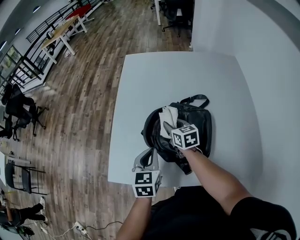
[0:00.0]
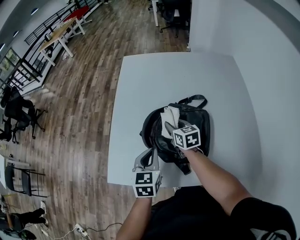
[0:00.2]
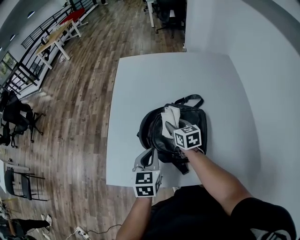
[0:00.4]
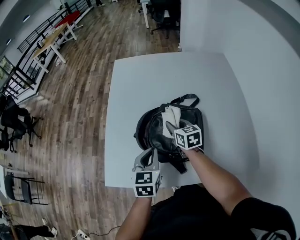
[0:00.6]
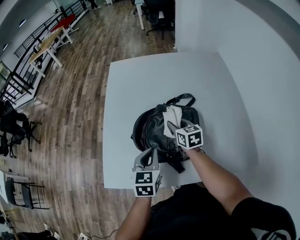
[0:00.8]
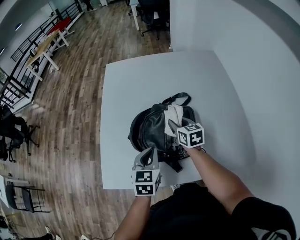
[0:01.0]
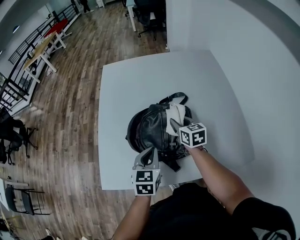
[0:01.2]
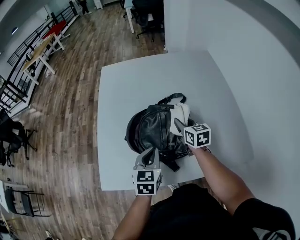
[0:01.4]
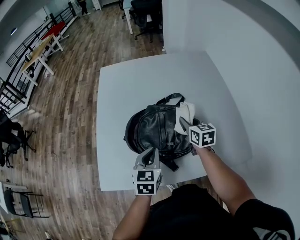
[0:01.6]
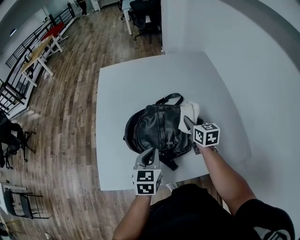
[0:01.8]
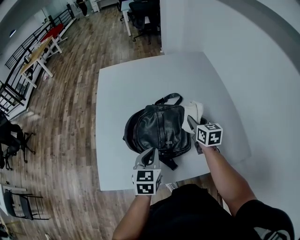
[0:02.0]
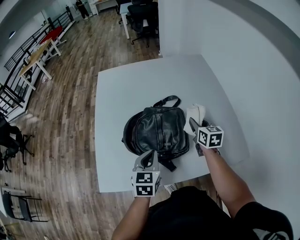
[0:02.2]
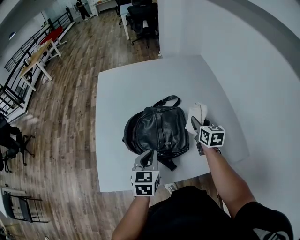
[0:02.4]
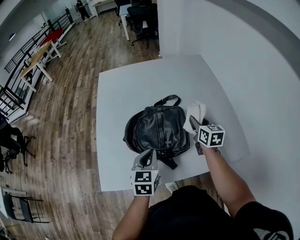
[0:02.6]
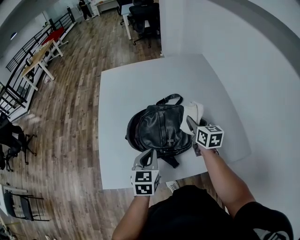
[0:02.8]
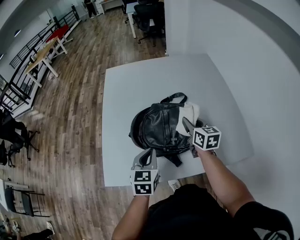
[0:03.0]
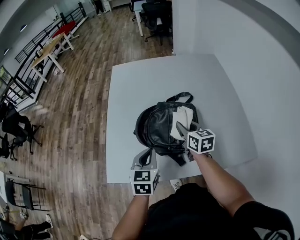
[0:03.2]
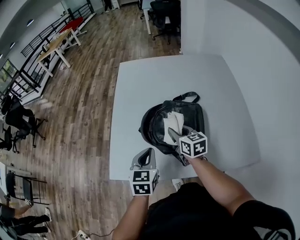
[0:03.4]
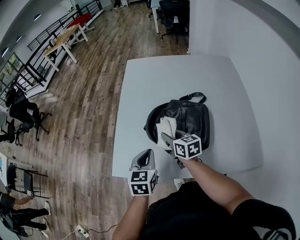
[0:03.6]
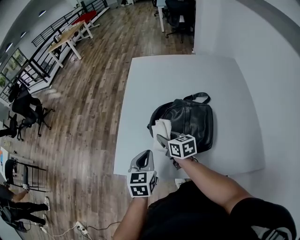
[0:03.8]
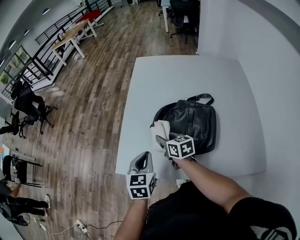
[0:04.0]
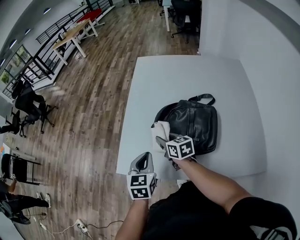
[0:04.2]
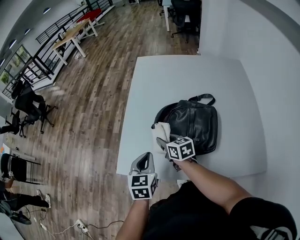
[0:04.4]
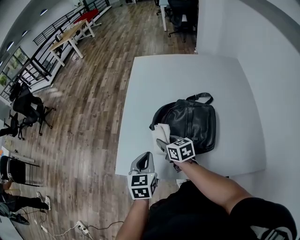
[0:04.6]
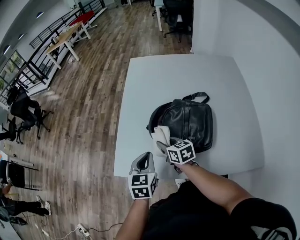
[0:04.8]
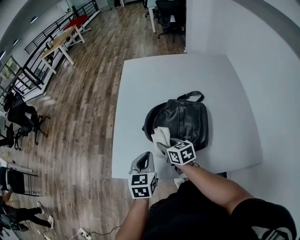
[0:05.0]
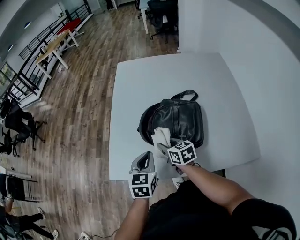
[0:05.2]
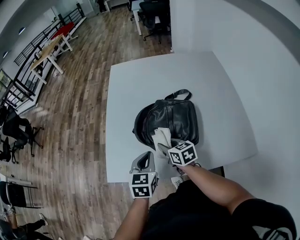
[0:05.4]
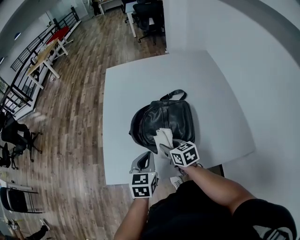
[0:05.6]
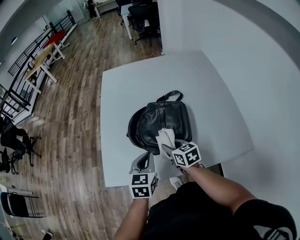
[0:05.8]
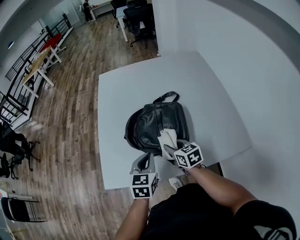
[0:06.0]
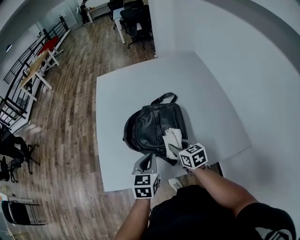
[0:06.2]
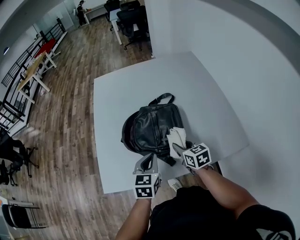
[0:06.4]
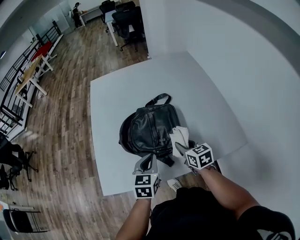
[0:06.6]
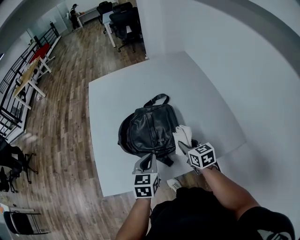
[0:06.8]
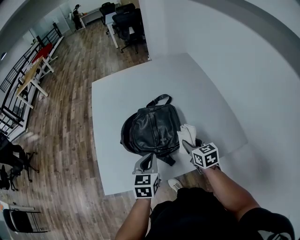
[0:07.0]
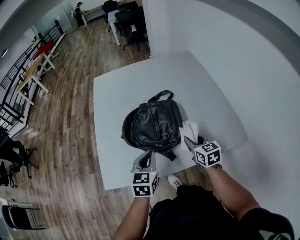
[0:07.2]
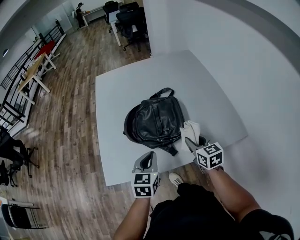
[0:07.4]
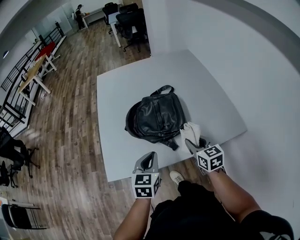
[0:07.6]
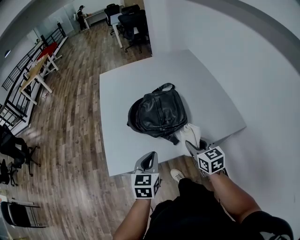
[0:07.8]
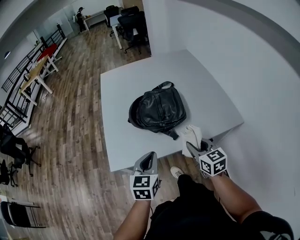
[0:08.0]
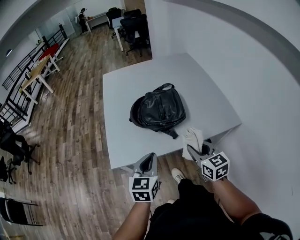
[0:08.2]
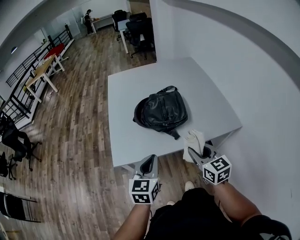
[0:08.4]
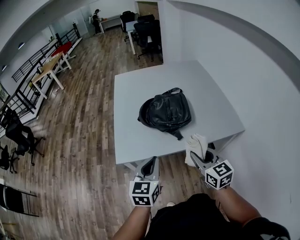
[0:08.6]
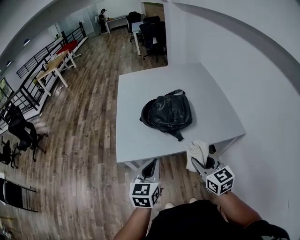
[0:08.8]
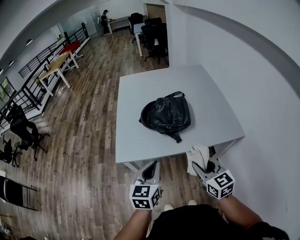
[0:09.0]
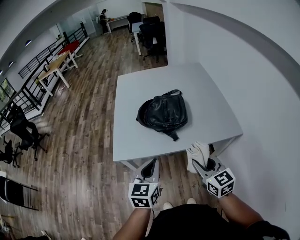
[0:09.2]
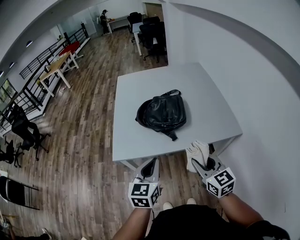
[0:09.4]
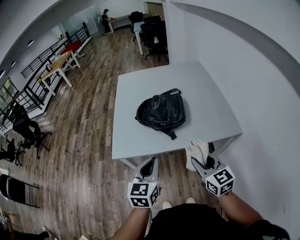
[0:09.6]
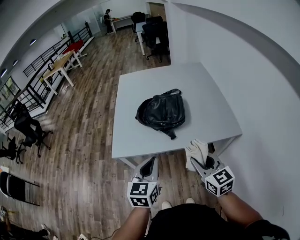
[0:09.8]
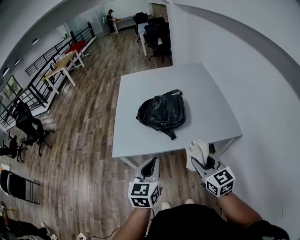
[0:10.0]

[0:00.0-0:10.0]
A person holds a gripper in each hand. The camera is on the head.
0:00.0 to 0:01.4: The right gripper moves to the right, approximately 15 cm. The left gripper heads to the right, covering about 10 cm.
0:01.4 to 0:02.8: The right gripper travels to the right by roughly 5 cm.
0:02.8 to 0:04.2: The left gripper changes place by some 15 cm, and swivels about 20 degrees. The right gripper shifts by approximately 30 cm, and swivels about 40 degrees.
0:04.2 to 0:05.8: The left gripper moves to the right, approximately 10 cm. Meanwhile the right gripper moves to the right and backward, roughly 15 cm.
0:05.8 to 0:07.2: The right gripper travels to the right by about 15 cm, and changes its angle by some 20 degrees.
0:07.2 to 0:08.6: The grippers both shift backward and upward by roughly 25 cm.
0:08.6 to 0:10.0: The grippers both shift to the right by some 5 cm.

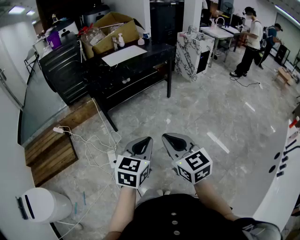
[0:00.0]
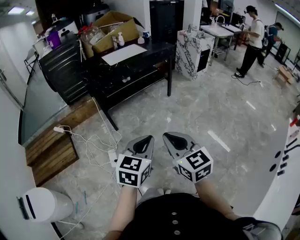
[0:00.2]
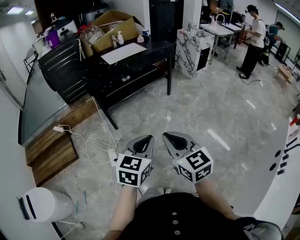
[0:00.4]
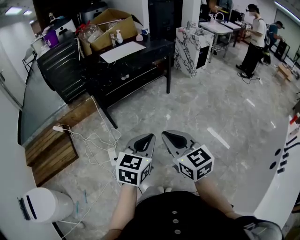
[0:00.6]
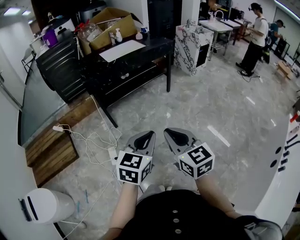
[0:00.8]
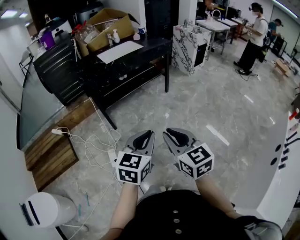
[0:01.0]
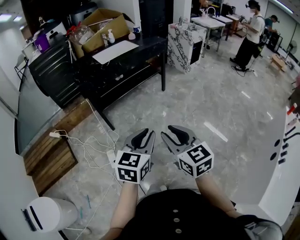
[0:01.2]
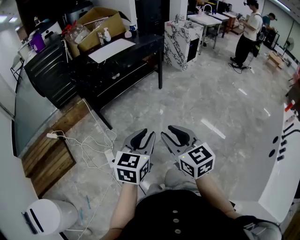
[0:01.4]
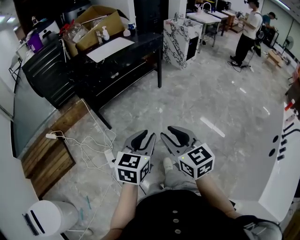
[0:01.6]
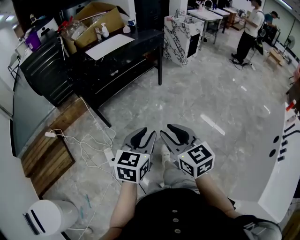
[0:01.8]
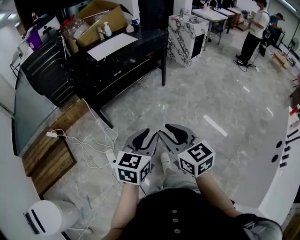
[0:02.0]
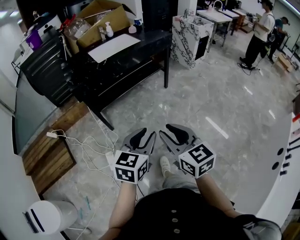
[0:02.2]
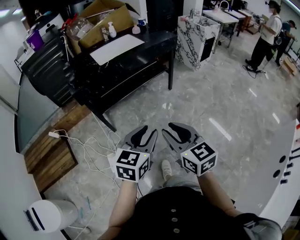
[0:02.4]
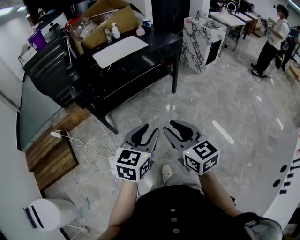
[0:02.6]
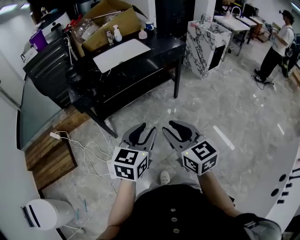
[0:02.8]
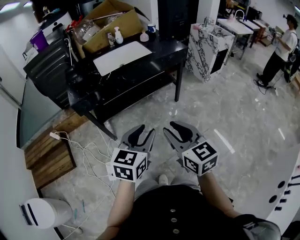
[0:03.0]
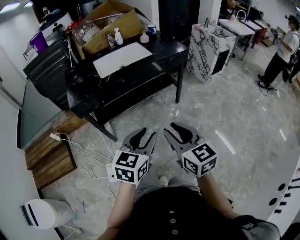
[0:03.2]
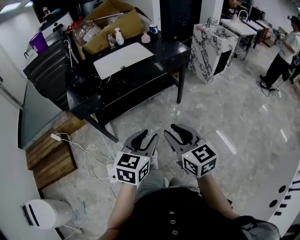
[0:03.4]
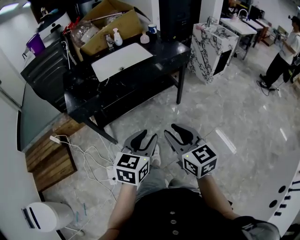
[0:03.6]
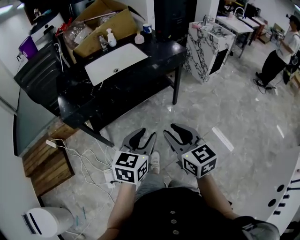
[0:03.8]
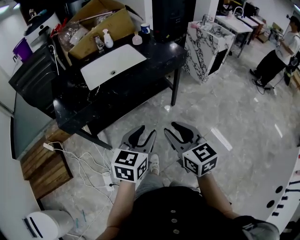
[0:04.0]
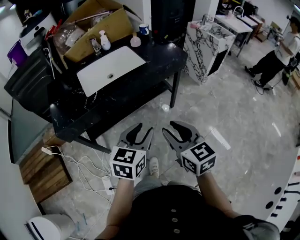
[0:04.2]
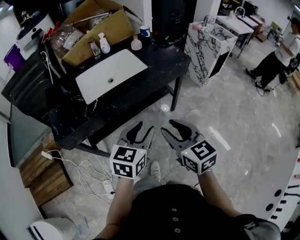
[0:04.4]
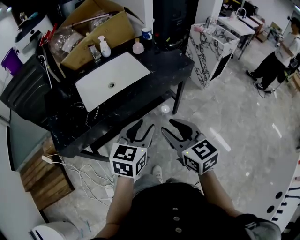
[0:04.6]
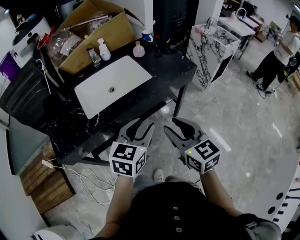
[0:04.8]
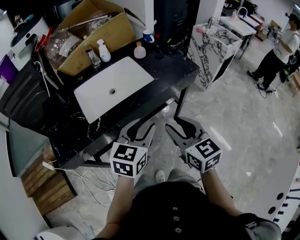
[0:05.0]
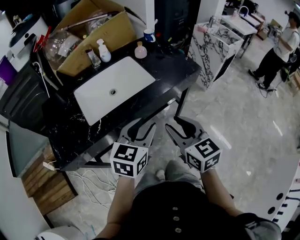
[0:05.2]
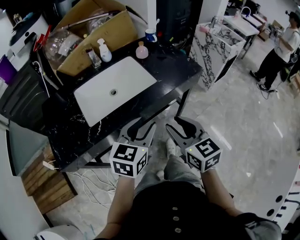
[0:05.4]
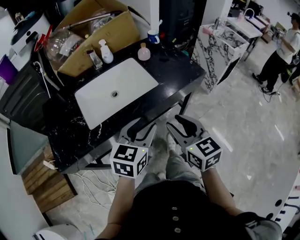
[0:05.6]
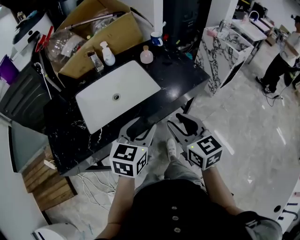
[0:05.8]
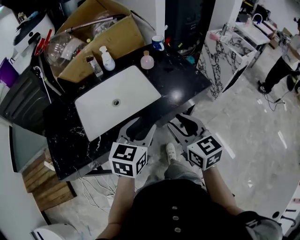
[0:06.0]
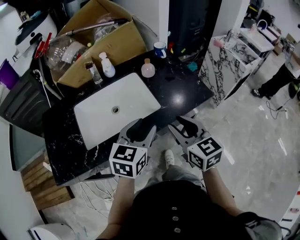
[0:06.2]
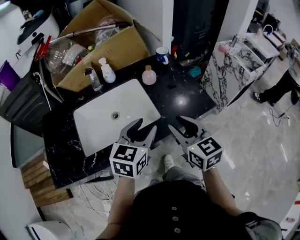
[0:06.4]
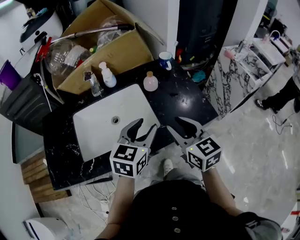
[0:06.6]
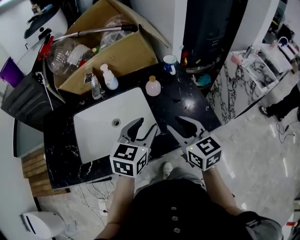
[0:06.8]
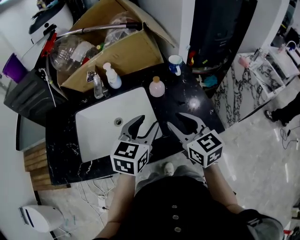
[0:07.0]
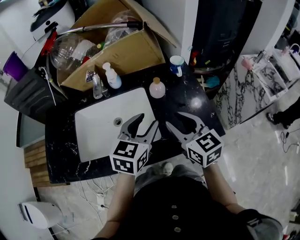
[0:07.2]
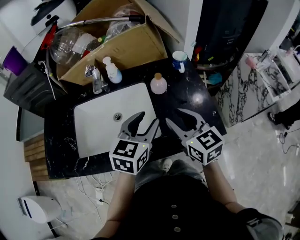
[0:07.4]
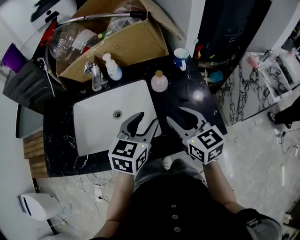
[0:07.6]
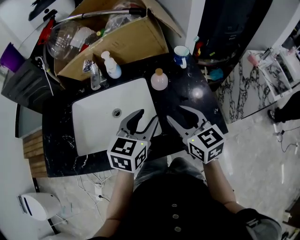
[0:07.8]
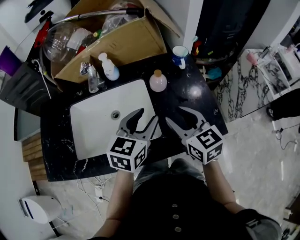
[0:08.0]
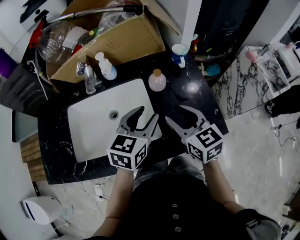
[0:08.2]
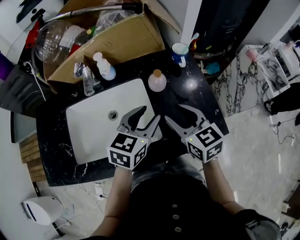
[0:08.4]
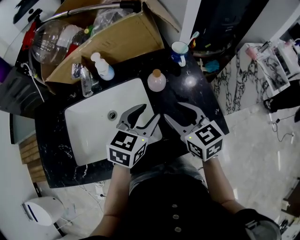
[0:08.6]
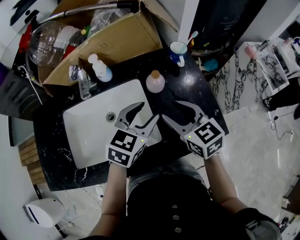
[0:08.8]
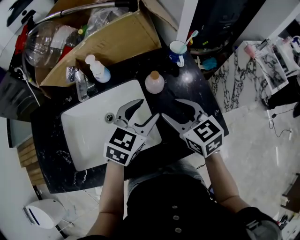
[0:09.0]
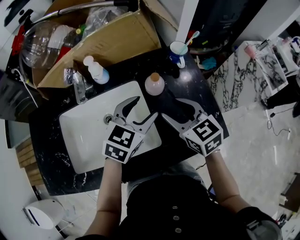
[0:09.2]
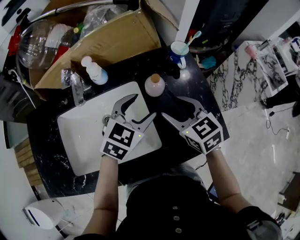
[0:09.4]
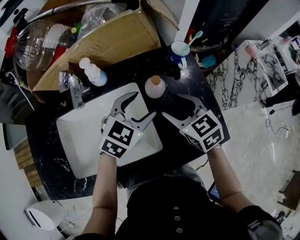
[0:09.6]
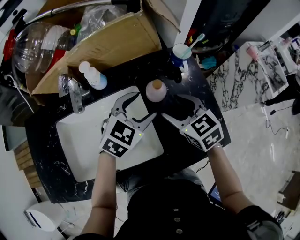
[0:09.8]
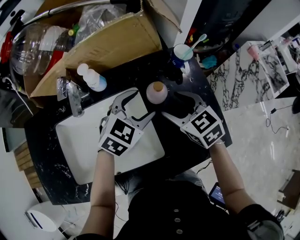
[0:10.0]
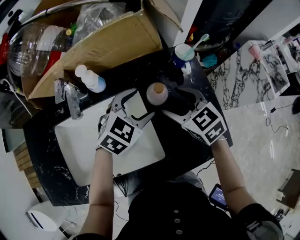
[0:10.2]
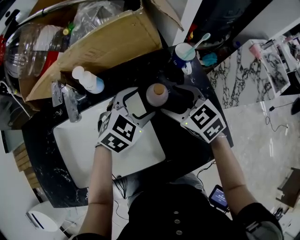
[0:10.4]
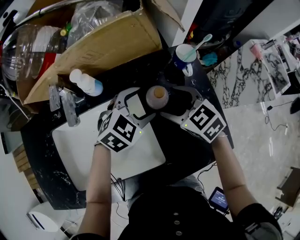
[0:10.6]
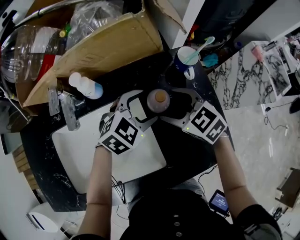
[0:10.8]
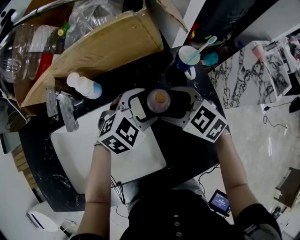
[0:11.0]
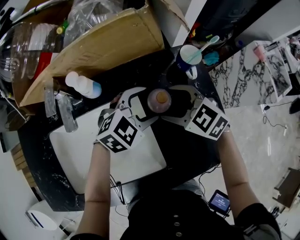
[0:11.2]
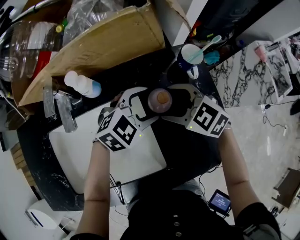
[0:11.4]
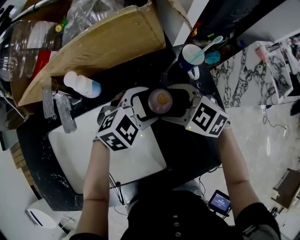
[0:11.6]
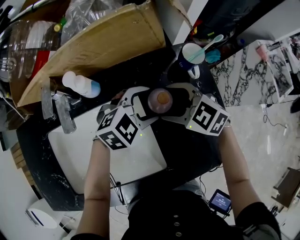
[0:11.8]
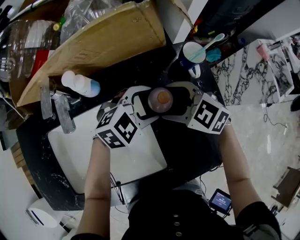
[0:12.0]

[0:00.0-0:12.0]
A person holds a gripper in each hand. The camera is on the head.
0:00.0 to 0:01.6: The right gripper moves about 5 cm, and opens its fingers. Meanwhile the left gripper ends up some 5 cm from where it was.
0:01.6 to 0:03.0: The grippers both shift forward by about 30 cm.
0:03.0 to 0:04.4: Both grippers travel together forward, some 25 cm.
0:04.4 to 0:06.0: Both grippers travel together forward, roughly 25 cm.
0:06.0 to 0:07.6: Both grippers move forward, roughly 20 cm. The right gripper swivels some 20 degrees.
0:07.6 to 0:09.0: Both grippers move forward, some 5 cm.
0:09.0 to 0:10.4: The two grippers go about 10 cm forward and downward. The left gripper changes its angle by roughly 20 degrees.
0:10.4 to 0:12.0: The right gripper rotates roughly 20 degrees.

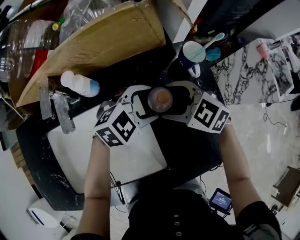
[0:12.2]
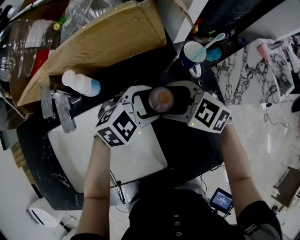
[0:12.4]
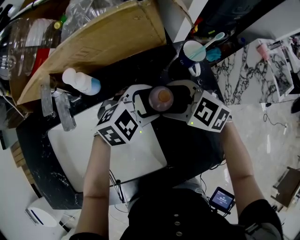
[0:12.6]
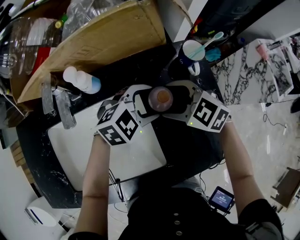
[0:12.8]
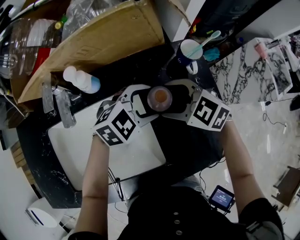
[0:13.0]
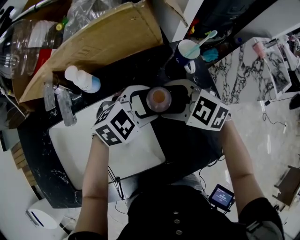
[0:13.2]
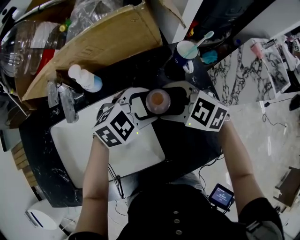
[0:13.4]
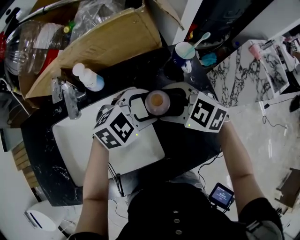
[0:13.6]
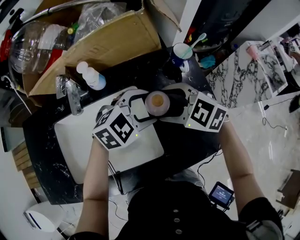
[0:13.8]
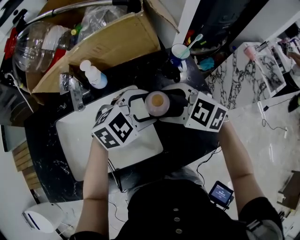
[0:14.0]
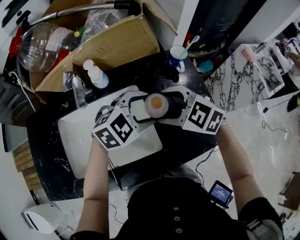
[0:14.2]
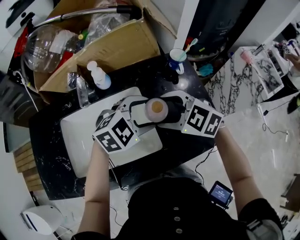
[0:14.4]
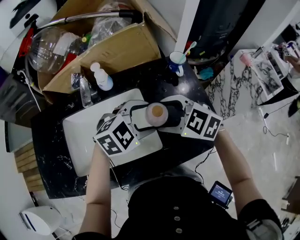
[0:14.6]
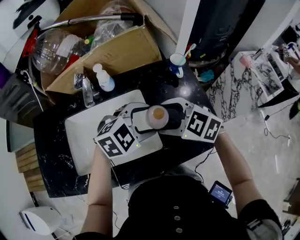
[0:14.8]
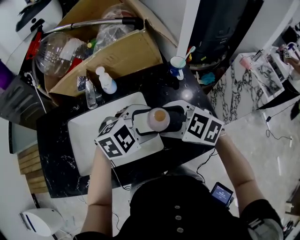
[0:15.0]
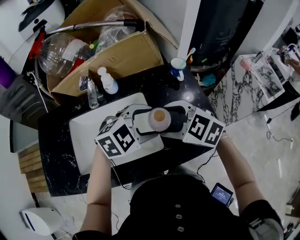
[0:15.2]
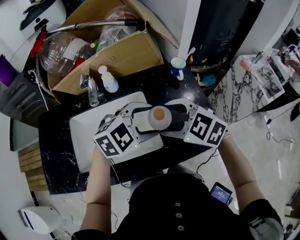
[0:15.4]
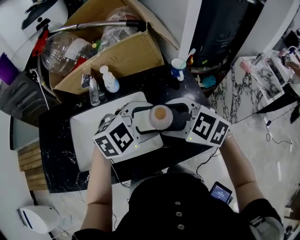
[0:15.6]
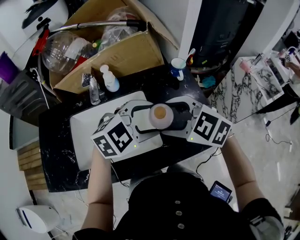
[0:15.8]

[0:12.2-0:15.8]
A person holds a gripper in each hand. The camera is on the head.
0:12.2 to 0:14.0: The two grippers go some 5 cm upward.
0:14.0 to 0:15.8: The right gripper shifts by some 10 cm. Meanwhile the left gripper moves roughly 10 cm.
